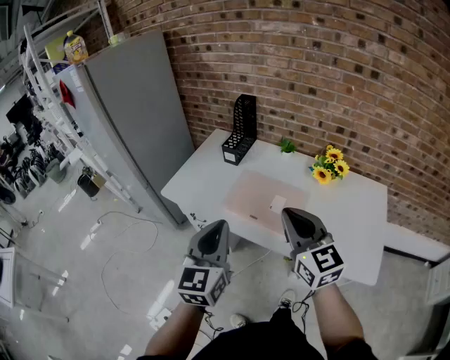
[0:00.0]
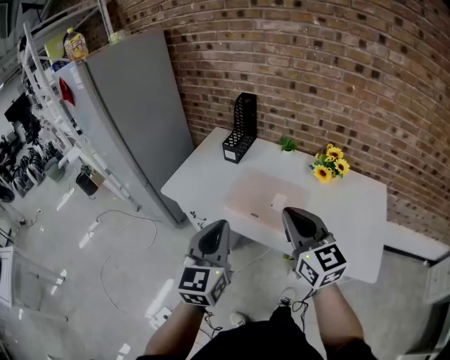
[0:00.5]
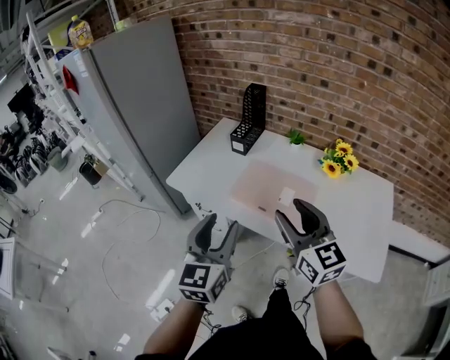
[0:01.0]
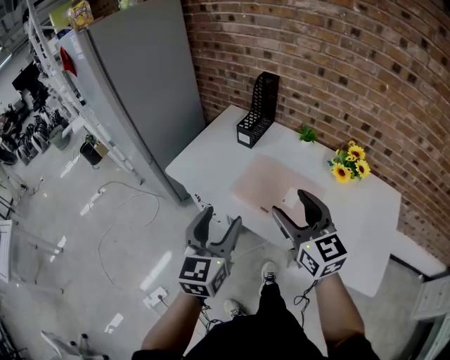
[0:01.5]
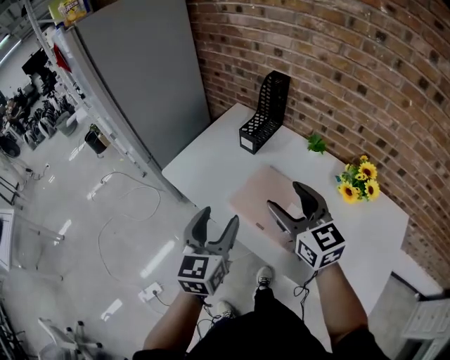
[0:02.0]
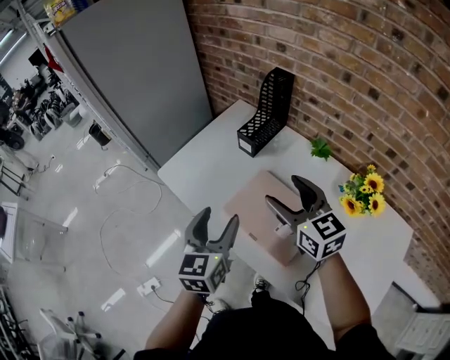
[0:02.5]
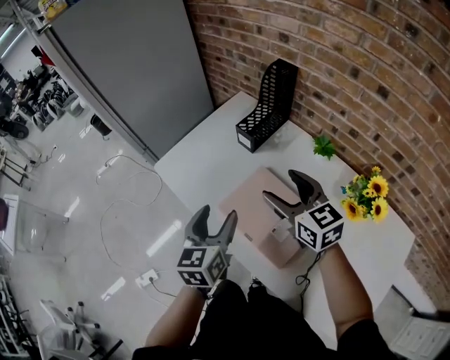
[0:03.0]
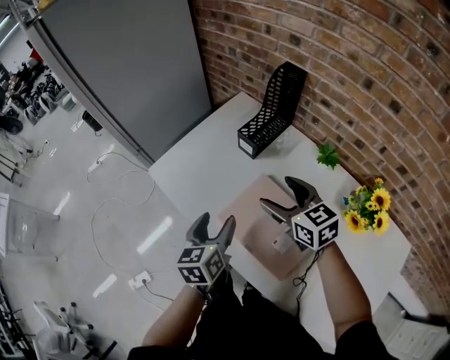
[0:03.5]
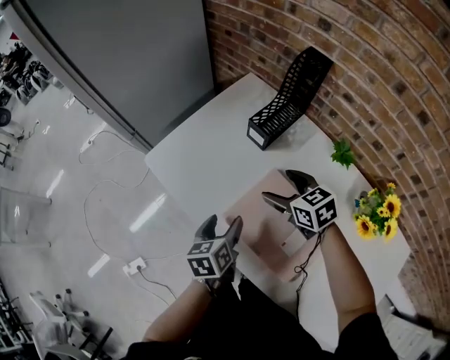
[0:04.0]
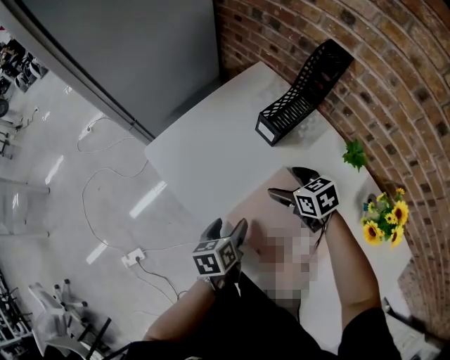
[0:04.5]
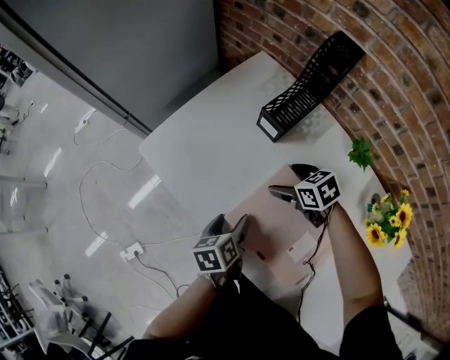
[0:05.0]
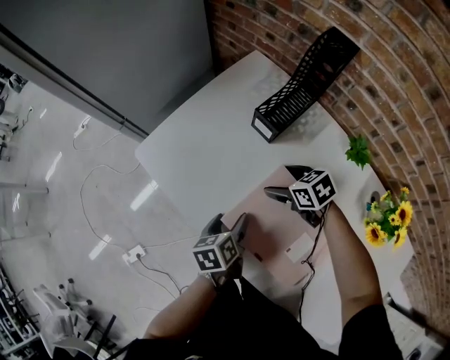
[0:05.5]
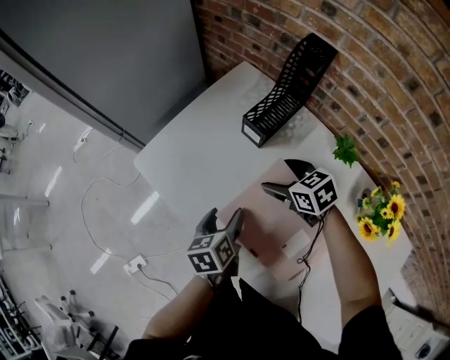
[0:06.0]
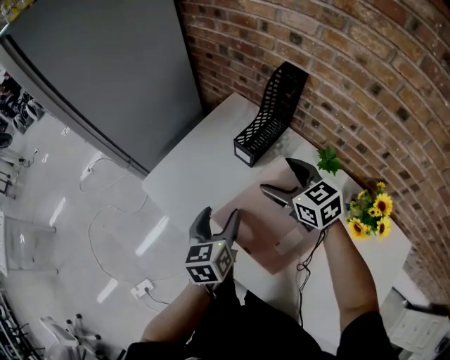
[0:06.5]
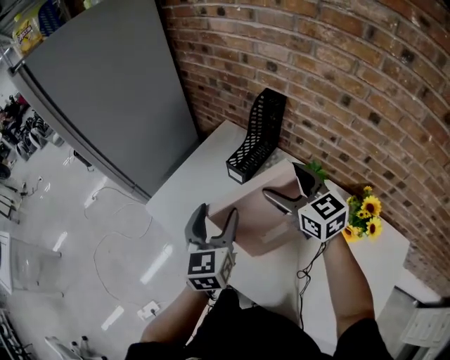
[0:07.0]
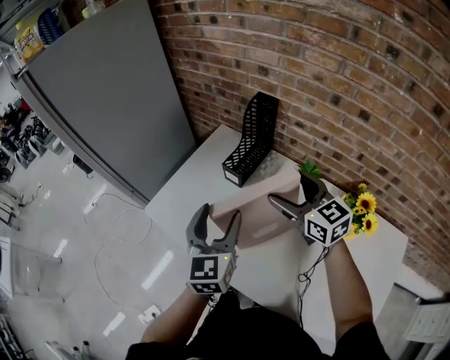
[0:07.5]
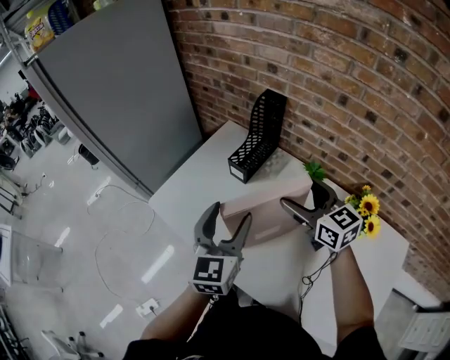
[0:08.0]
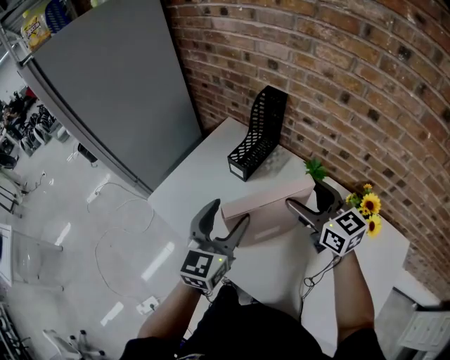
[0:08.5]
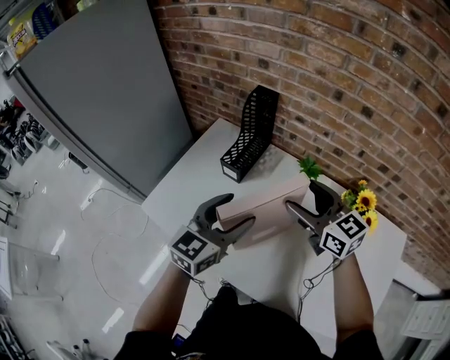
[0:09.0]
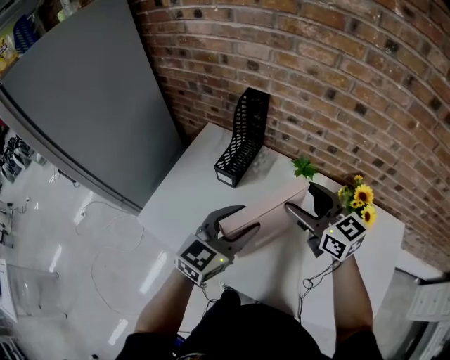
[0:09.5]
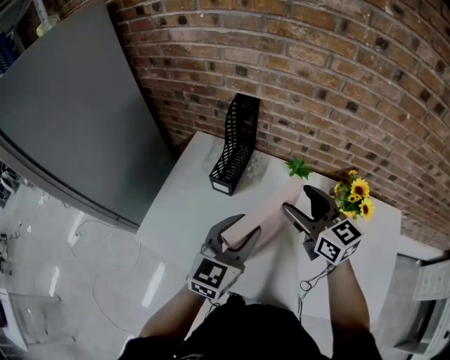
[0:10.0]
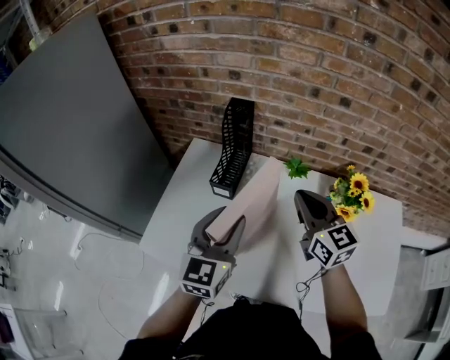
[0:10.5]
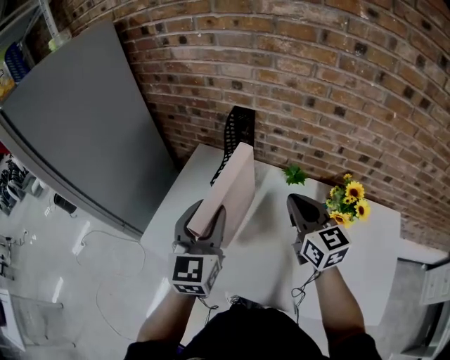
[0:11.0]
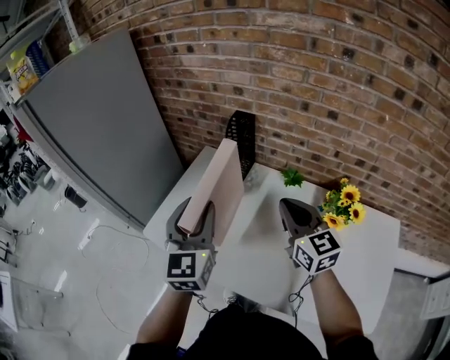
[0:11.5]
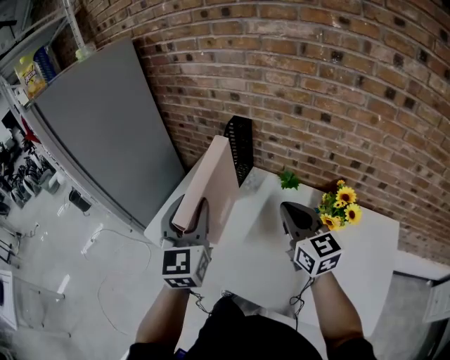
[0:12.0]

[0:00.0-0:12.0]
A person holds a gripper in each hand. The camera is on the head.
0:00.0 to 0:02.0: The left gripper shifts about 15 cm forward and downward, and opens up; the right gripper heads forward, covering approximately 20 cm, and opens up.
0:02.0 to 0:04.0: The grippers both shift downward and forward by about 25 cm. The left gripper turns by roughly 40 degrees; the right gripper swivels some 40 degrees.
0:06.0 to 0:08.0: Both grippers travel together upward, some 25 cm. The right gripper tips its fingers upward by some 30 degrees. The left gripper tips its fingers upward by approximately 30 degrees.
0:08.0 to 0:10.0: The left gripper shifts by about 5 cm, changes its angle by about 30 degrees, and closes.
0:10.0 to 0:12.0: The left gripper heads upward and to the left, covering about 15 cm, and swivels roughly 40 degrees. Meanwhile the right gripper goes about 10 cm backward, and closes.

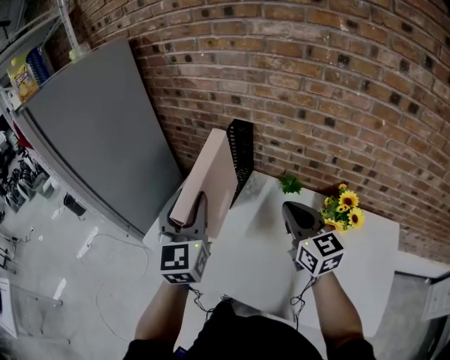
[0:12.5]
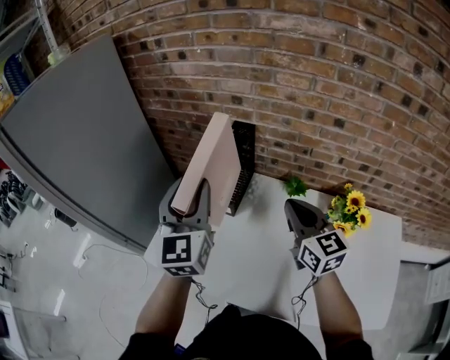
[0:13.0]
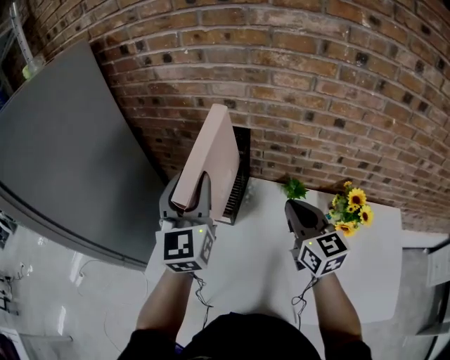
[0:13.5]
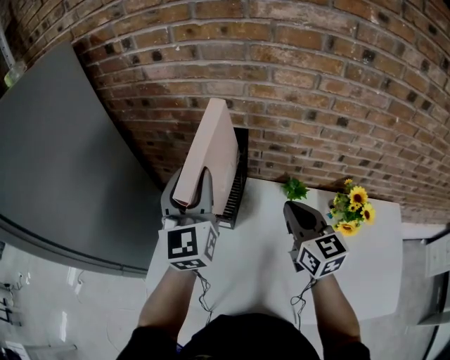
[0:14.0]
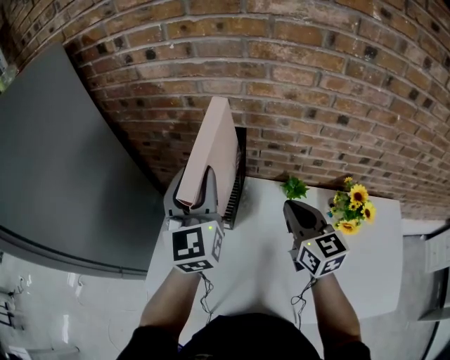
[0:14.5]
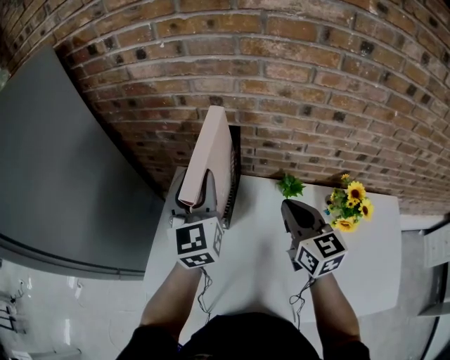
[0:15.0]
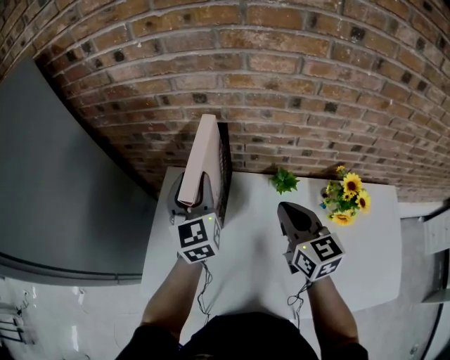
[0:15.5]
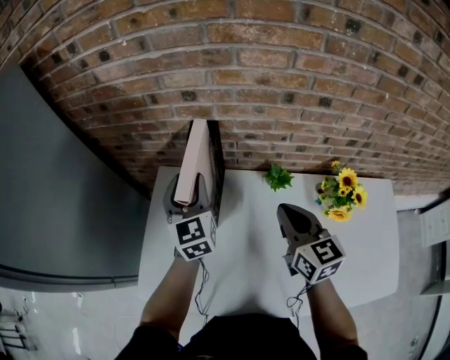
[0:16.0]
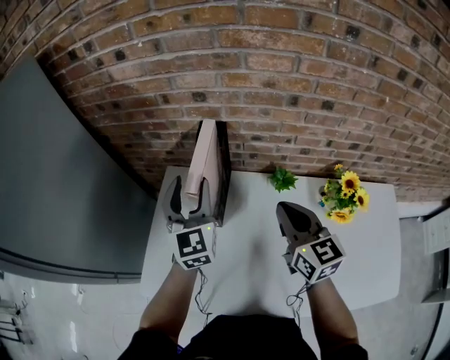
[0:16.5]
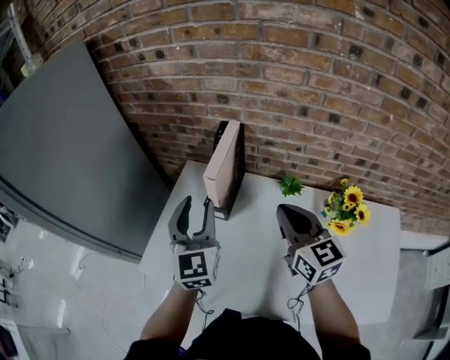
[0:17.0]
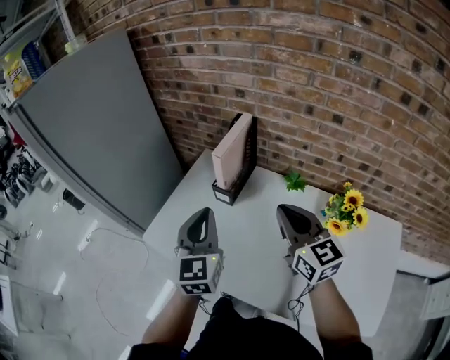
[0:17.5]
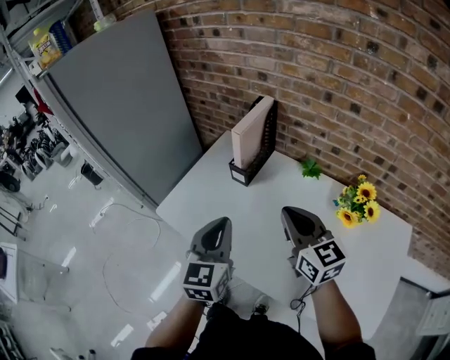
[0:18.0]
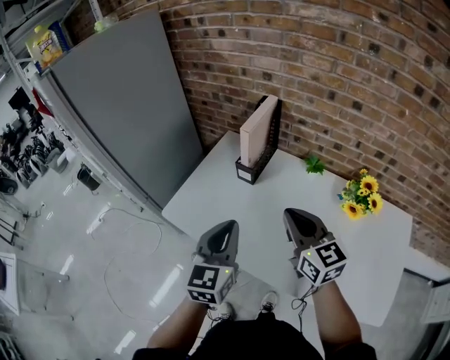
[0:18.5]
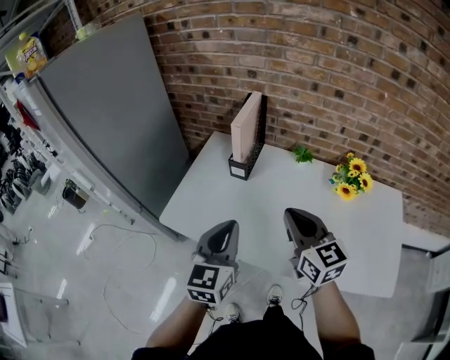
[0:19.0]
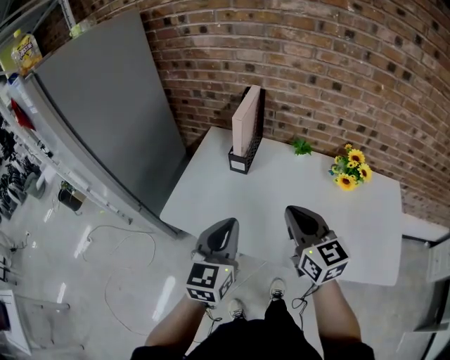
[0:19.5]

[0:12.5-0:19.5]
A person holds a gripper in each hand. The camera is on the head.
0:12.5 to 0:14.5: The left gripper moves forward, some 20 cm; the right gripper moves forward, some 10 cm.
0:14.5 to 0:16.0: The left gripper goes roughly 15 cm downward and forward.
0:16.0 to 0:17.5: The left gripper goes about 25 cm backward, and closes its fingers, while the right gripper travels backward and upward by some 15 cm, and rotates about 30 degrees.
0:17.5 to 0:19.5: The grippers both shift backward and to the left by about 15 cm. The left gripper changes its angle by about 20 degrees.

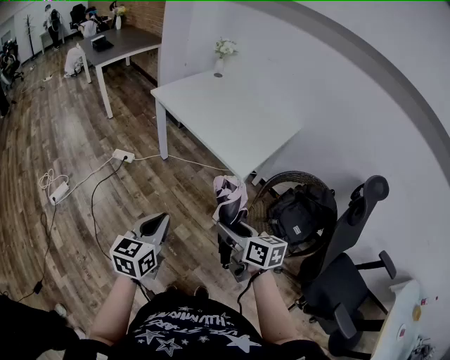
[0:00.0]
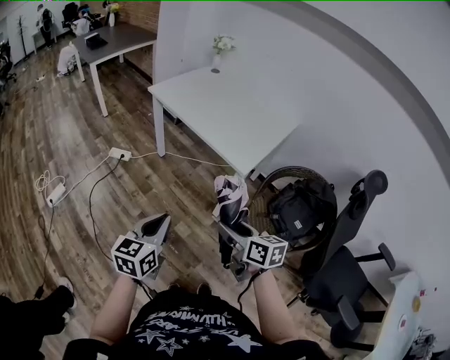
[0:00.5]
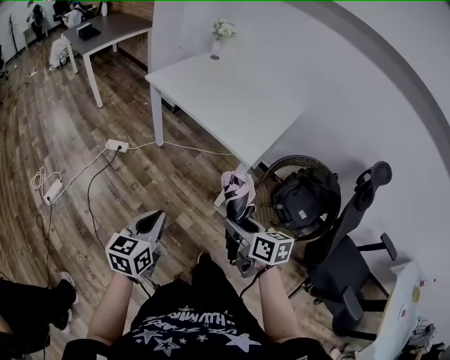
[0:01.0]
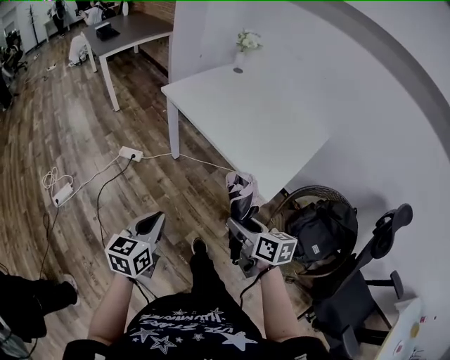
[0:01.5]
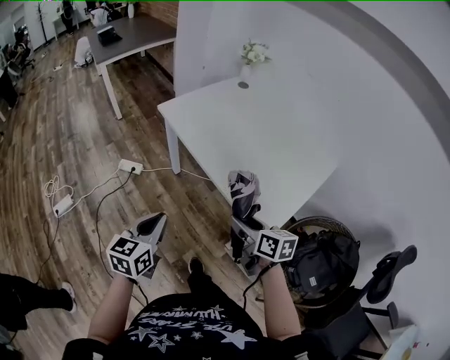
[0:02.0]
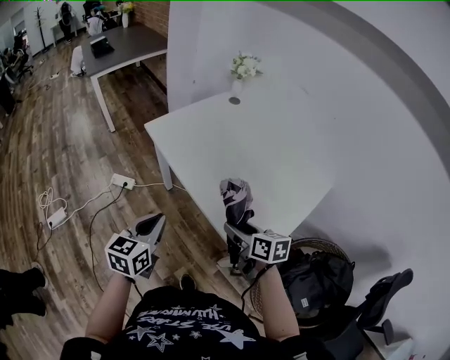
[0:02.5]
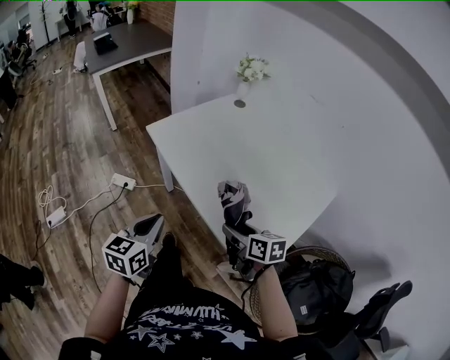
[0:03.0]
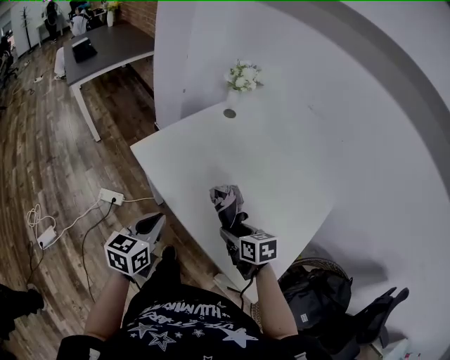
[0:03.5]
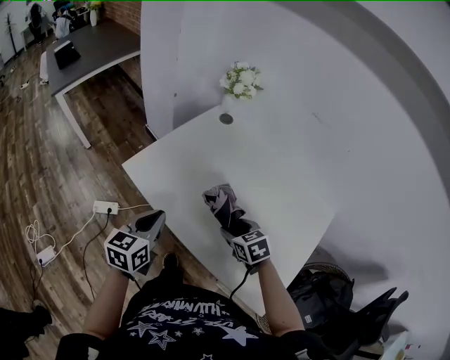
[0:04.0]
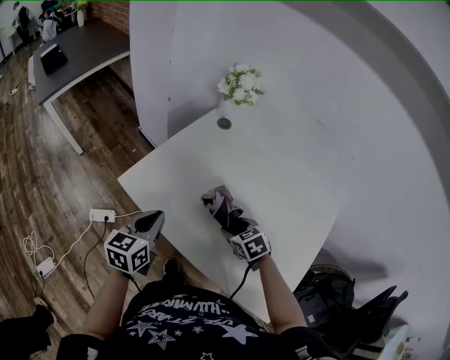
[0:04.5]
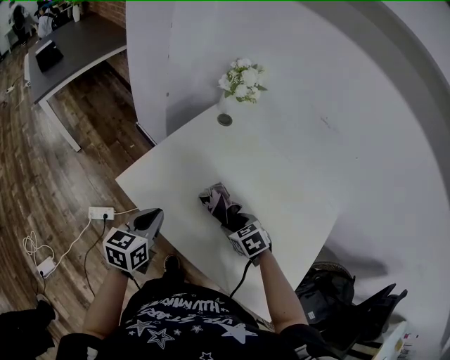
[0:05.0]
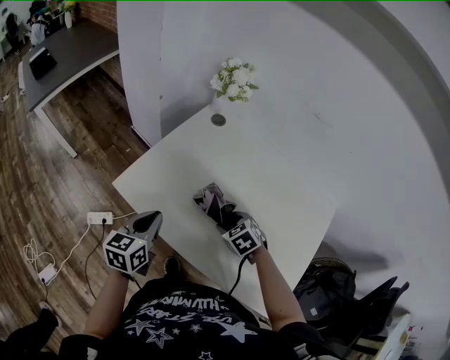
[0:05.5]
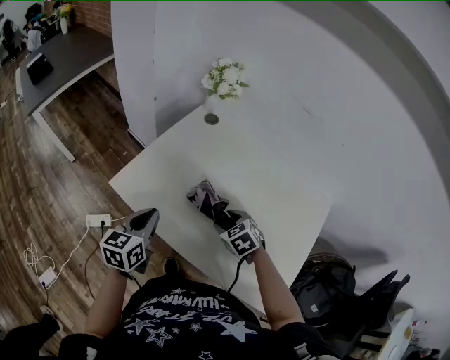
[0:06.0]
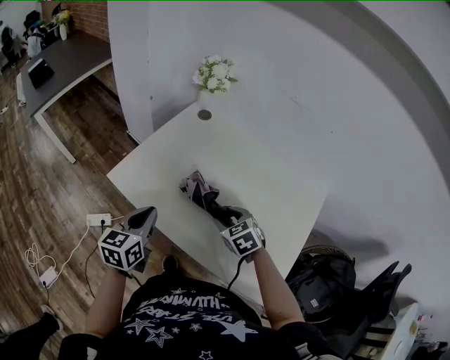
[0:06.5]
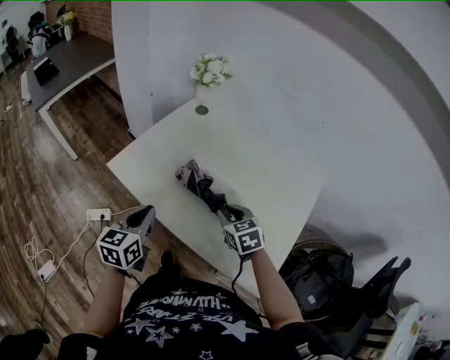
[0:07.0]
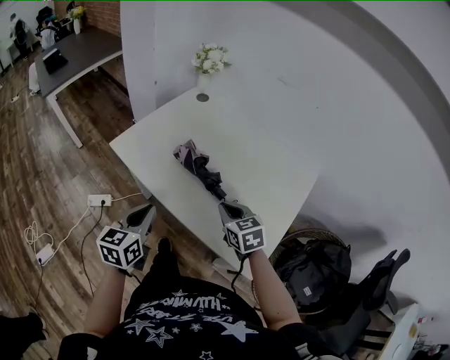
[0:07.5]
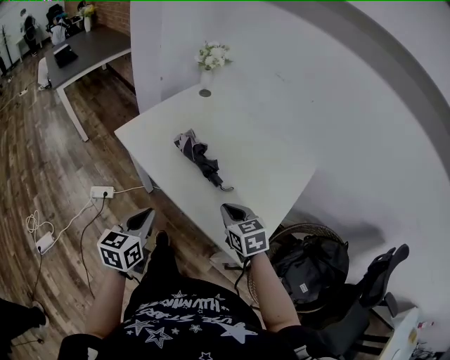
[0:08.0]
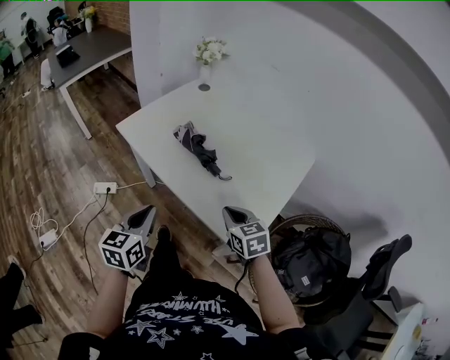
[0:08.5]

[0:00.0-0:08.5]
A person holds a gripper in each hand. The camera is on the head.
0:00.0 to 0:02.0: Both grippers move forward, about 30 cm.
0:02.0 to 0:04.0: Both grippers travel together forward, some 30 cm. The right gripper turns by approximately 40 degrees.
0:06.5 to 0:08.5: The grippers both shift backward by roughly 20 cm. The right gripper closes.
